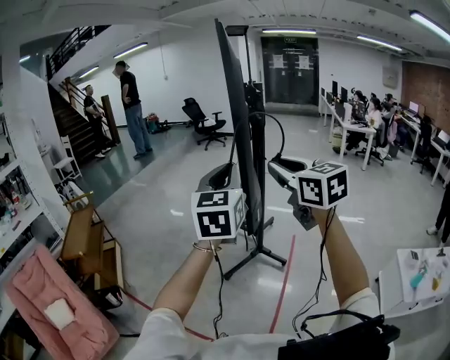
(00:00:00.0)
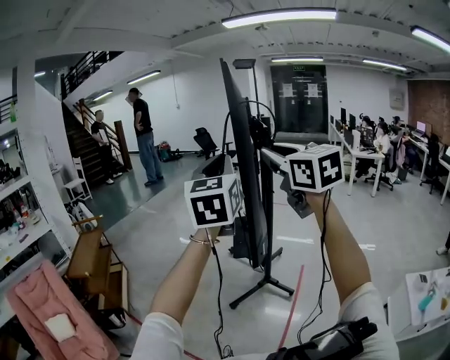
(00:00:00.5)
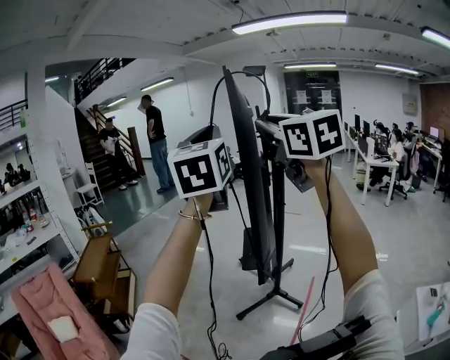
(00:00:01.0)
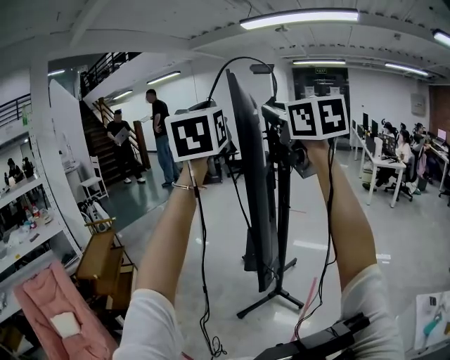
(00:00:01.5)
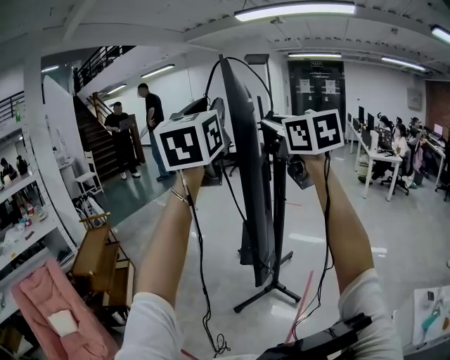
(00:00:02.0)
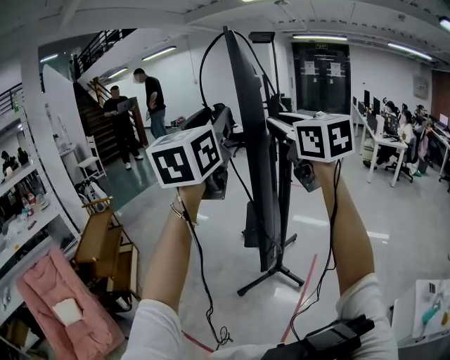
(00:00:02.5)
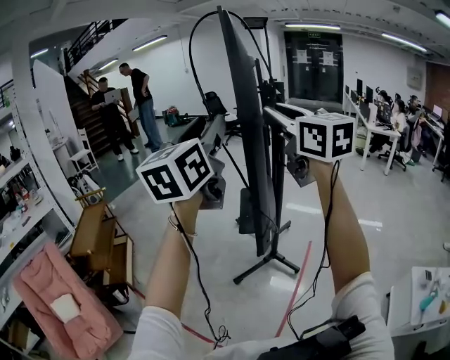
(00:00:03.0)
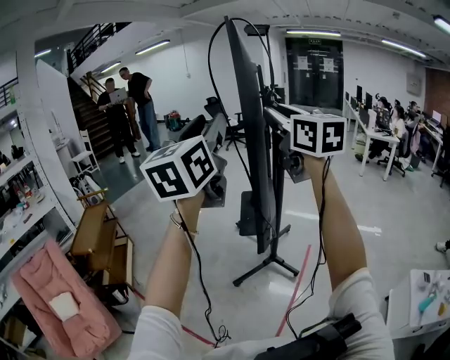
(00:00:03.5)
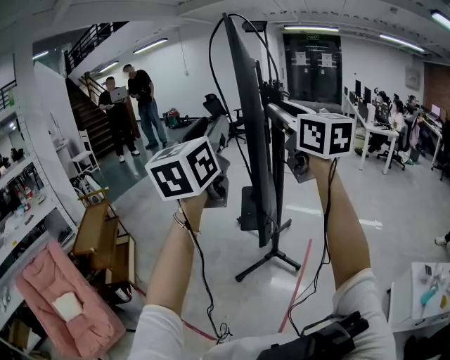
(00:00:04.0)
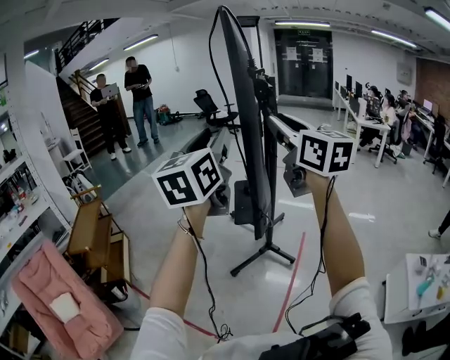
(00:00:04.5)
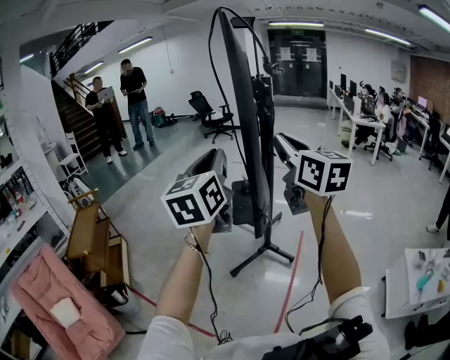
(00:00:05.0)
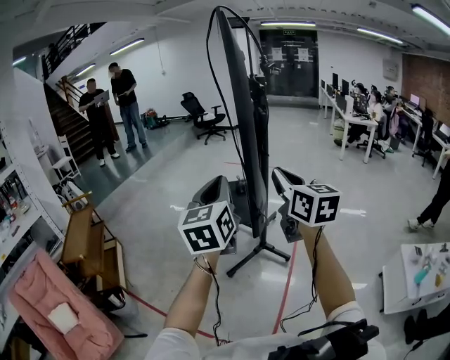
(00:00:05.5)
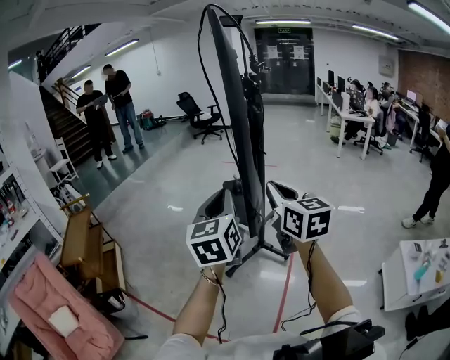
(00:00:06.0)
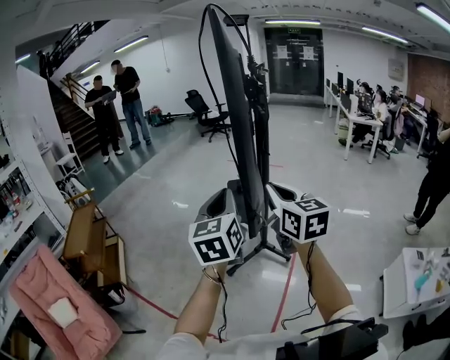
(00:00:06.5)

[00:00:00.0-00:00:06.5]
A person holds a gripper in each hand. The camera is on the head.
00:00:00.0 to 00:00:02.0: Both grippers travel together upward and forward, some 25 cm. The left gripper opens up.
00:00:02.0 to 00:00:04.5: The left gripper travels downward by approximately 20 cm, and swivels approximately 20 degrees. Meanwhile the right gripper goes some 15 cm downward and backward.
00:00:04.5 to 00:00:06.5: Both grippers move downward, some 15 cm. The left gripper closes up; the right gripper closes up.

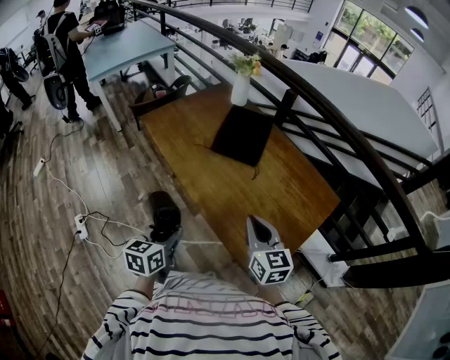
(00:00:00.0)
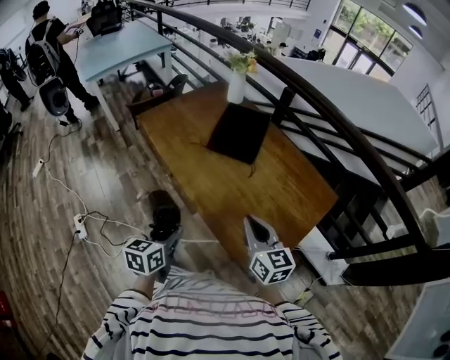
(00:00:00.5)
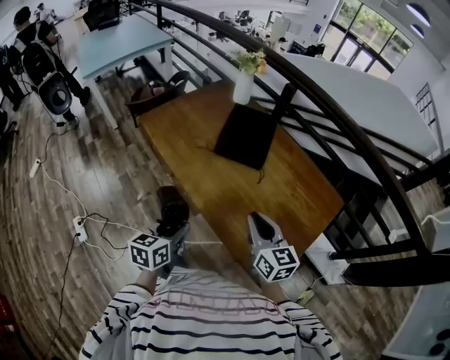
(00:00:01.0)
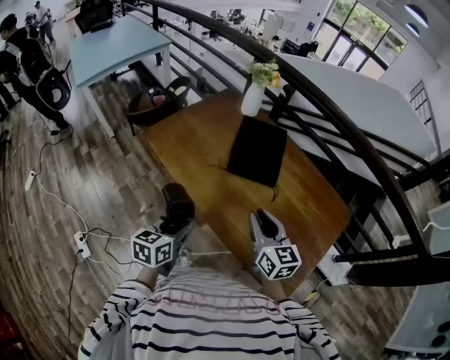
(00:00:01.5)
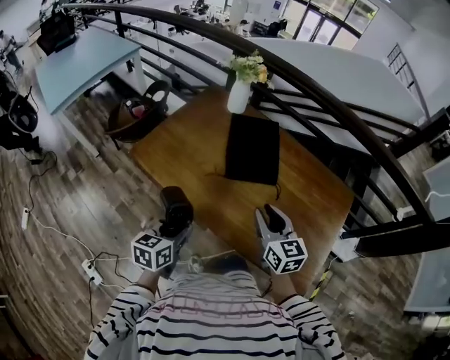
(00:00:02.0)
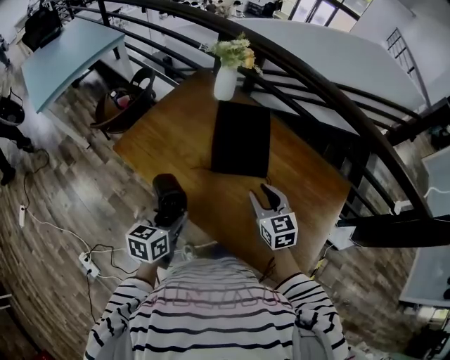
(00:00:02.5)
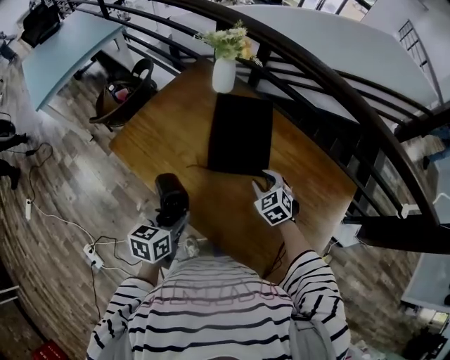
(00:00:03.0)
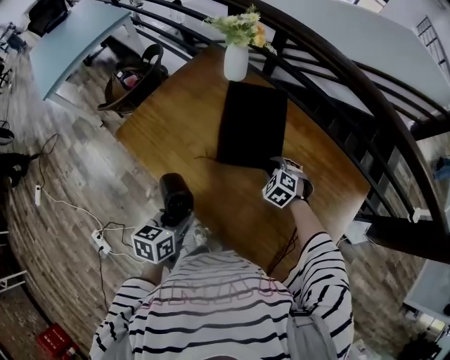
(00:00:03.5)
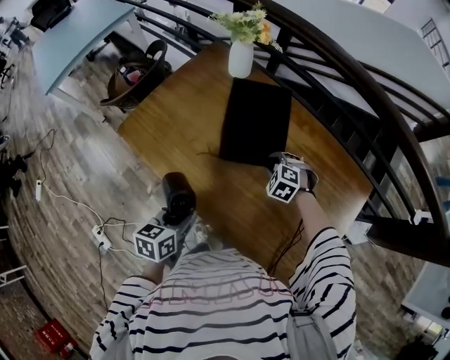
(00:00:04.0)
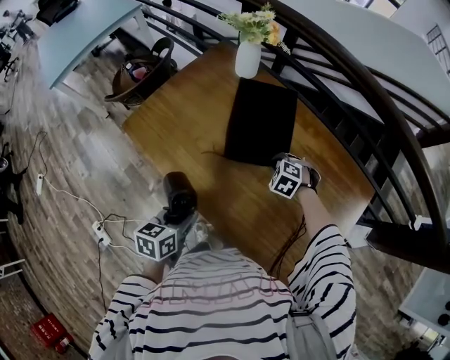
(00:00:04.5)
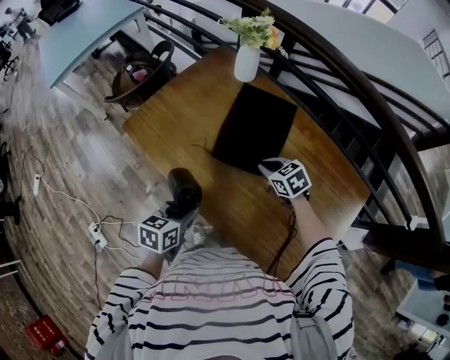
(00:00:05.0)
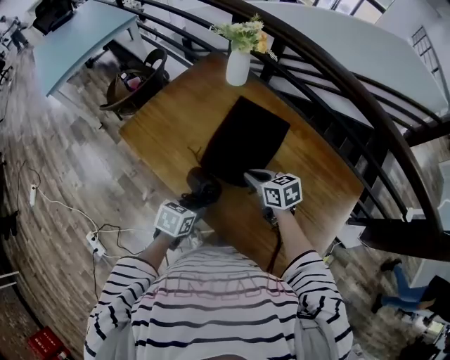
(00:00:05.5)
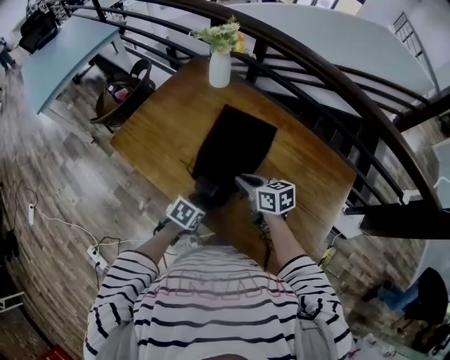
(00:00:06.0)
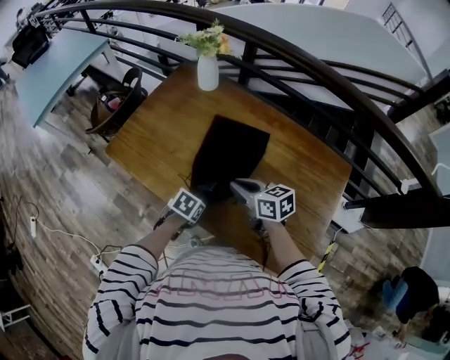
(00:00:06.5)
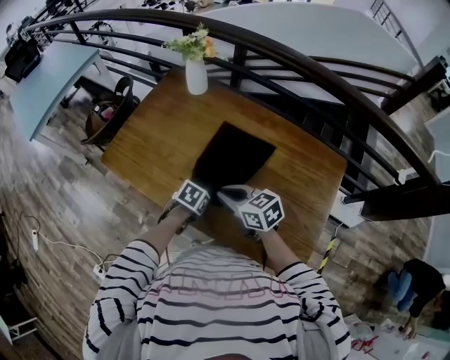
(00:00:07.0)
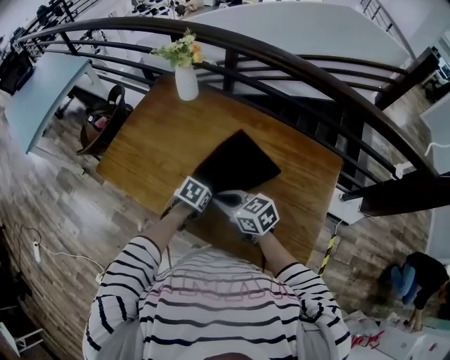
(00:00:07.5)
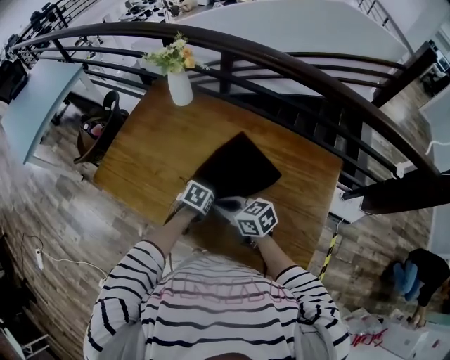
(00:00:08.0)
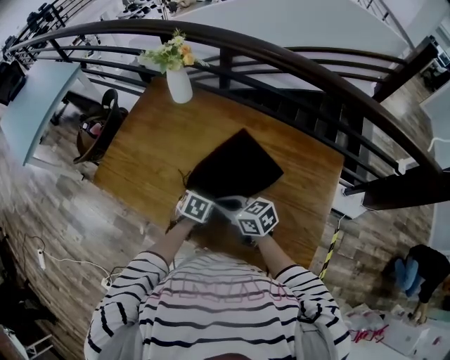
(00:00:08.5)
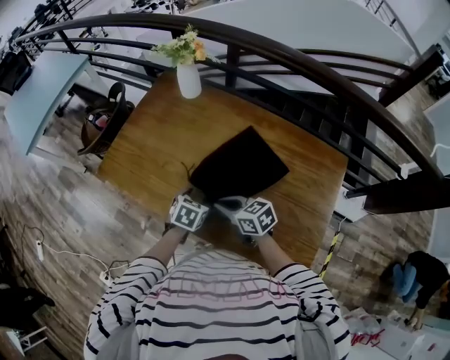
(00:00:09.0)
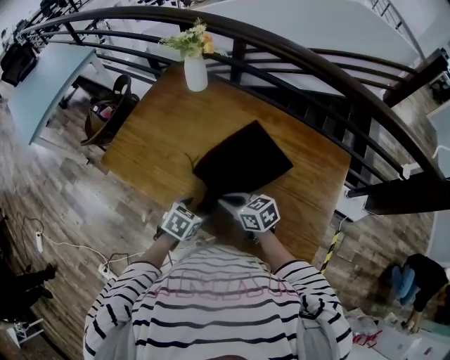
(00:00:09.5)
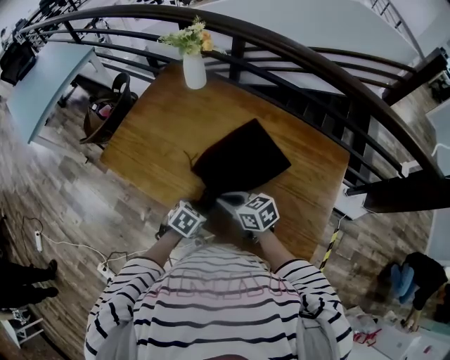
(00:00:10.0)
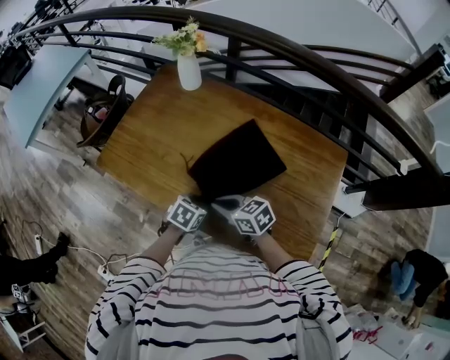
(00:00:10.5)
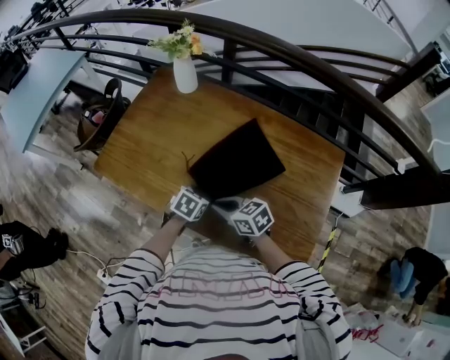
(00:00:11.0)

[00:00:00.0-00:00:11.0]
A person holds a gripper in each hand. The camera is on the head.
00:00:00.0 to 00:00:02.0: Both grippers travel together forward and to the left, approximately 30 cm. The left gripper swivels approximately 20 degrees; the right gripper opens.
00:00:02.0 to 00:00:03.5: The left gripper is displaced forward and to the right by about 10 cm. Meanwhile the right gripper is displaced downward and forward by approximately 30 cm, and angles its fingers downward, by about 40 degrees.
00:00:03.5 to 00:00:05.5: The left gripper moves downward, about 5 cm. The right gripper moves upward, to the left and backward, approximately 15 cm, twists approximately 50 degrees clockwise, seen from behind, and closes its fingers.
00:00:05.5 to 00:00:07.5: The right gripper shifts by roughly 10 cm, while the left gripper ends up approximately 10 cm from where it was, and rotates about 30 degrees.
00:00:07.5 to 00:00:09.0: The left gripper opens.
00:00:09.0 to 00:00:11.0: The left gripper closes up.

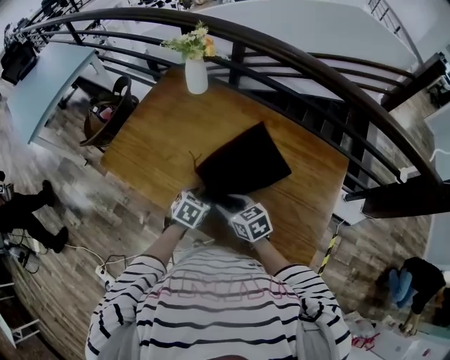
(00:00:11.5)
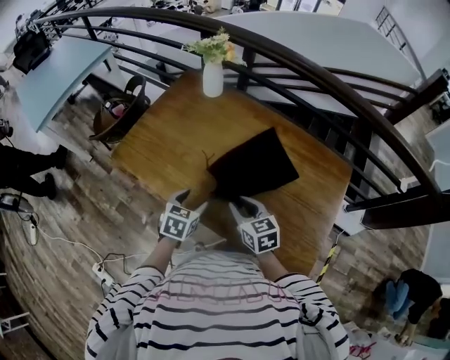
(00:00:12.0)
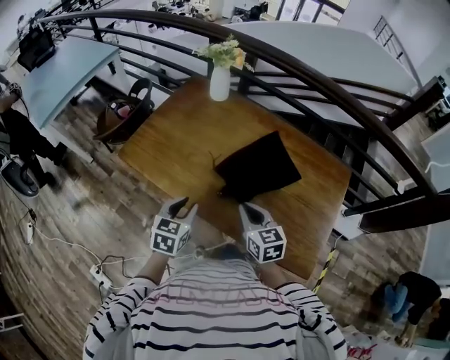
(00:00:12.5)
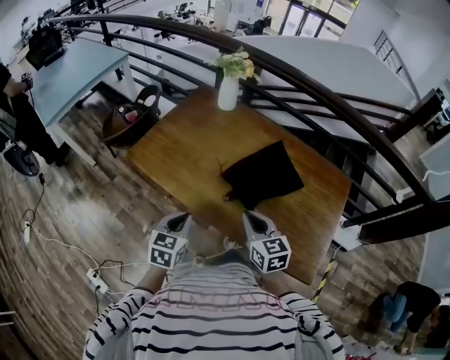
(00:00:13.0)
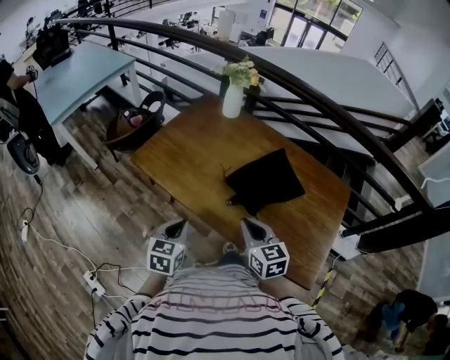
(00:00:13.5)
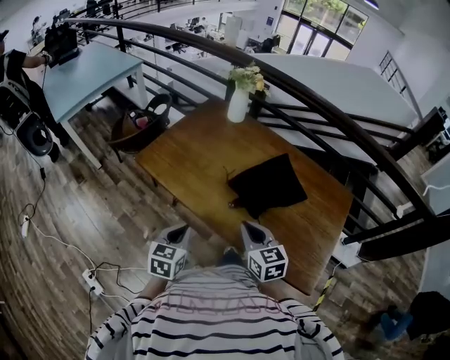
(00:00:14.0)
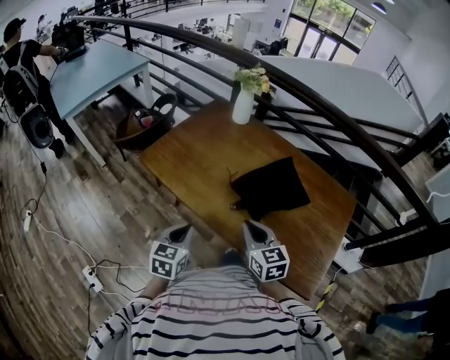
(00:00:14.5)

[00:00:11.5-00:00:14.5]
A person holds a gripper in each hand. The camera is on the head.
00:00:11.5 to 00:00:13.0: The right gripper is displaced upward and backward by approximately 15 cm, turns by some 20 degrees, and closes up; the left gripper heads to the left, upward and backward, covering approximately 25 cm, changes its angle by some 30 degrees, and closes its fingers.
00:00:13.0 to 00:00:14.5: The left gripper is displaced backward by approximately 5 cm.

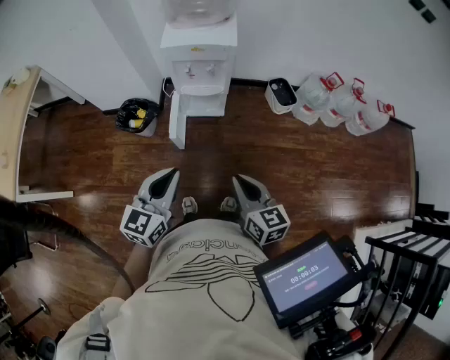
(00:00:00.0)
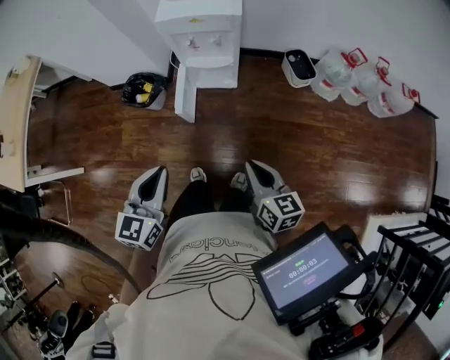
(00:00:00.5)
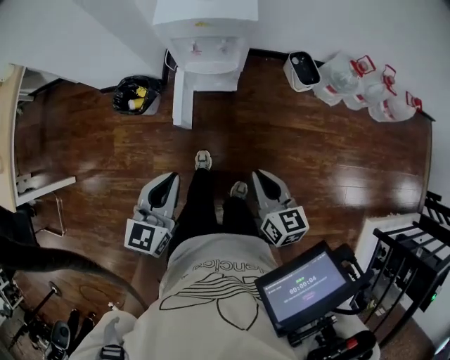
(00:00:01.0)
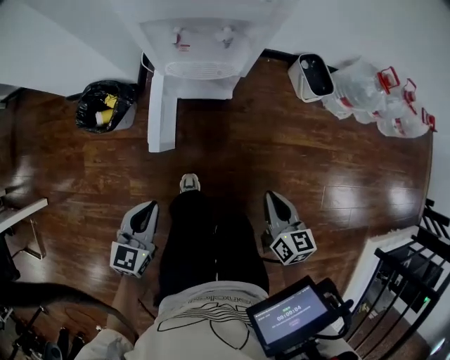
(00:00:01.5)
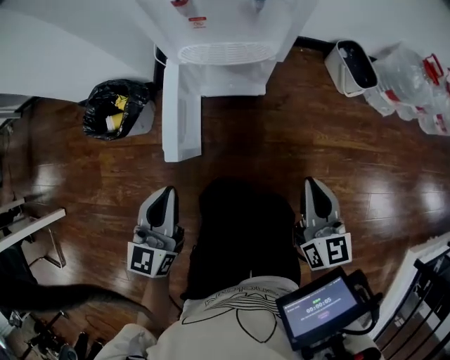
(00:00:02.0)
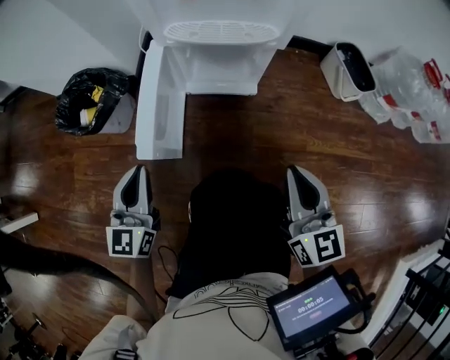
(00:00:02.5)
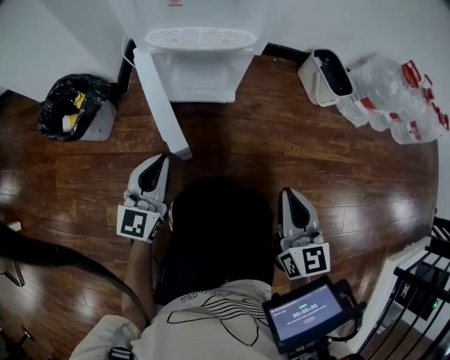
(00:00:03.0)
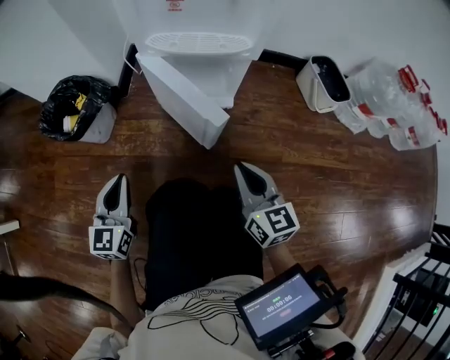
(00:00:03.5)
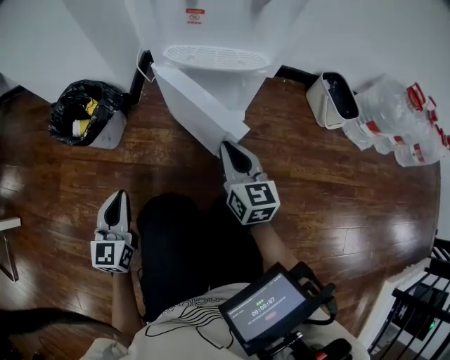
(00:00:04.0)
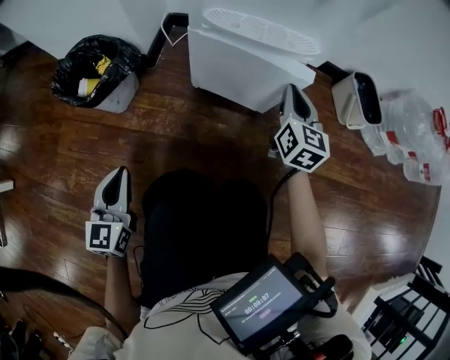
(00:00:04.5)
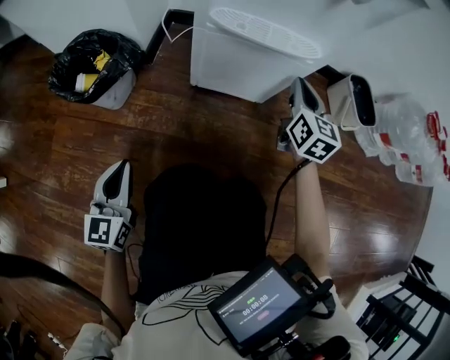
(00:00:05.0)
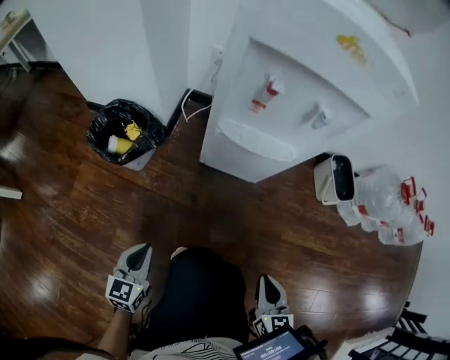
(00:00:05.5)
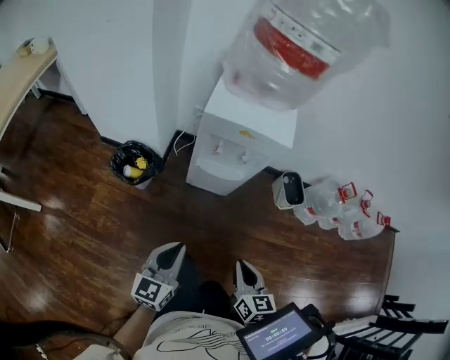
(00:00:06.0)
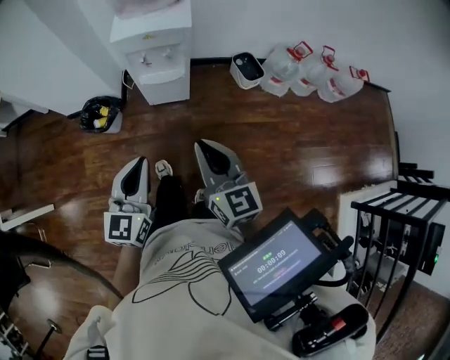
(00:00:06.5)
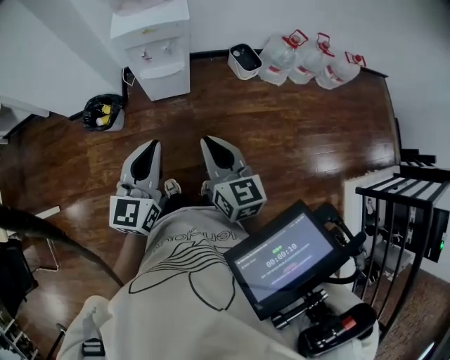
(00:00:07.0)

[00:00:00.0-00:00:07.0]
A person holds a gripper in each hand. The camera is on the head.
00:00:00.0 to 00:00:02.0: Both grippers move downward and forward, some 40 cm.
00:00:02.0 to 00:00:03.5: The right gripper moves downward and to the left, about 15 cm; the left gripper moves downward, some 15 cm.
00:00:03.5 to 00:00:05.0: The right gripper goes approximately 25 cm forward, while the left gripper is displaced to the left by approximately 5 cm.
00:00:05.0 to 00:00:07.0: The left gripper shifts about 60 cm upward, and changes its angle by some 30 degrees; the right gripper travels upward and backward by roughly 70 cm.
